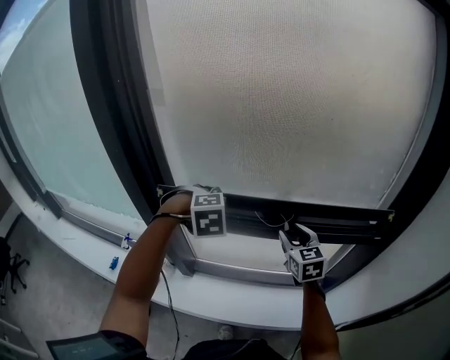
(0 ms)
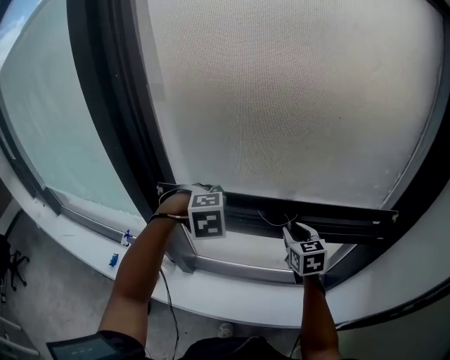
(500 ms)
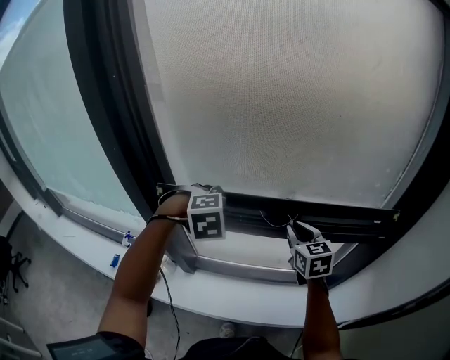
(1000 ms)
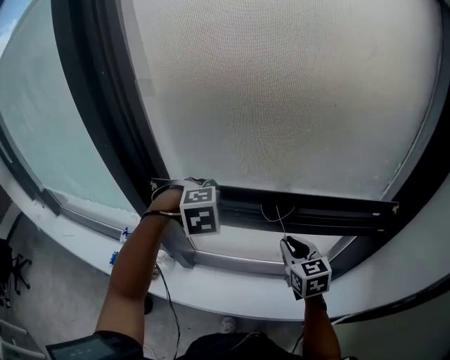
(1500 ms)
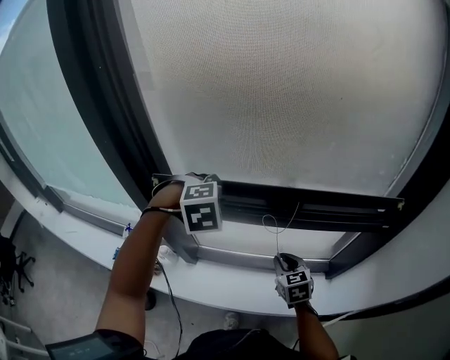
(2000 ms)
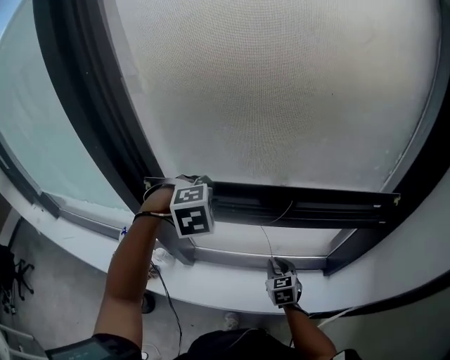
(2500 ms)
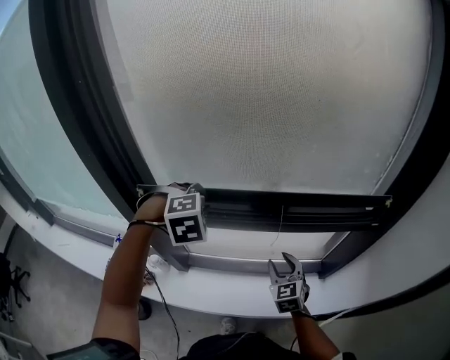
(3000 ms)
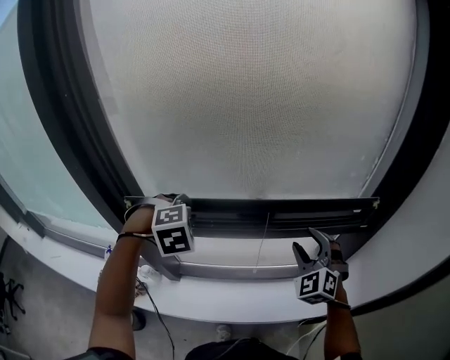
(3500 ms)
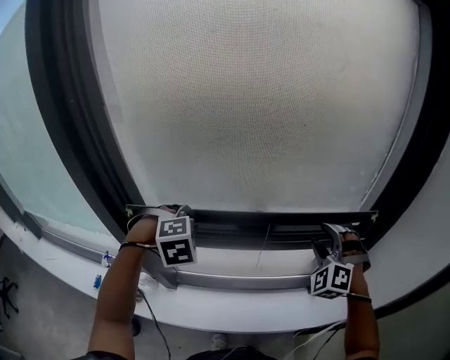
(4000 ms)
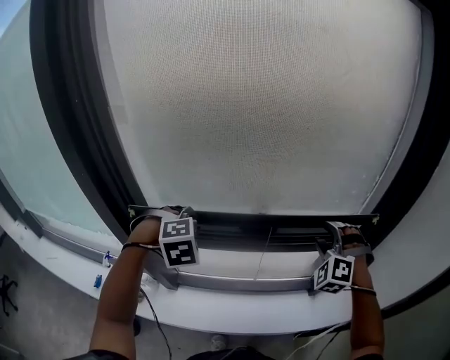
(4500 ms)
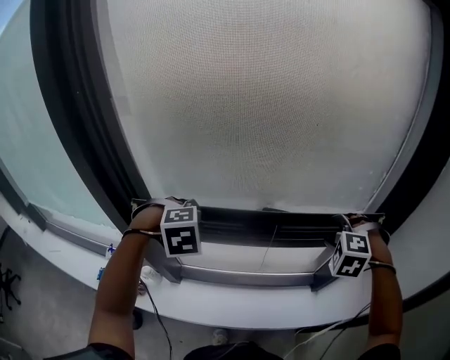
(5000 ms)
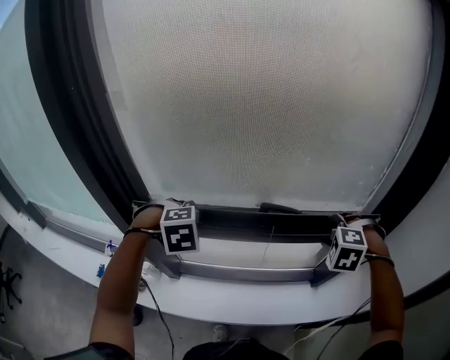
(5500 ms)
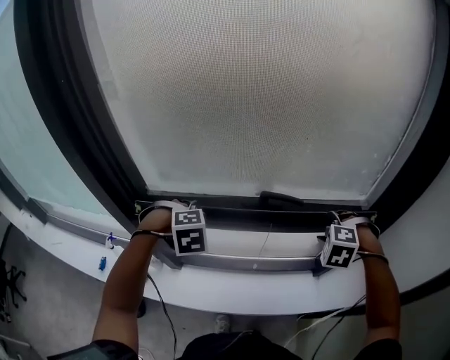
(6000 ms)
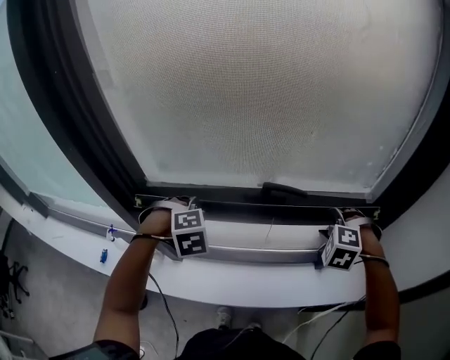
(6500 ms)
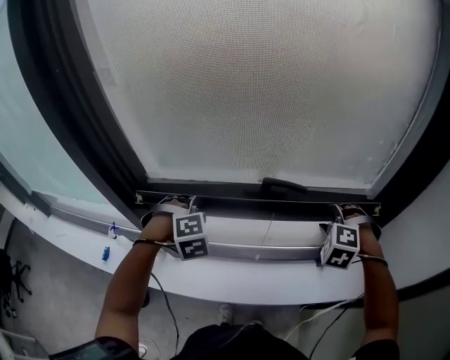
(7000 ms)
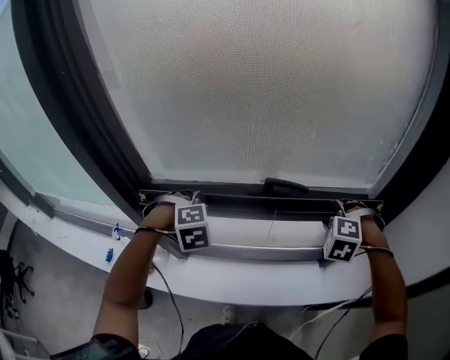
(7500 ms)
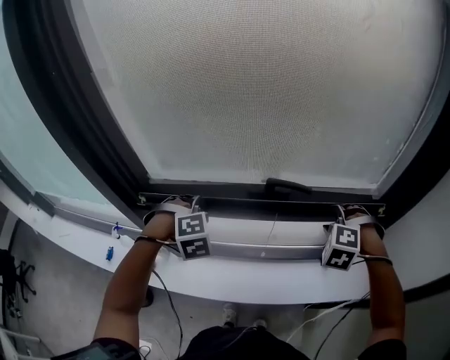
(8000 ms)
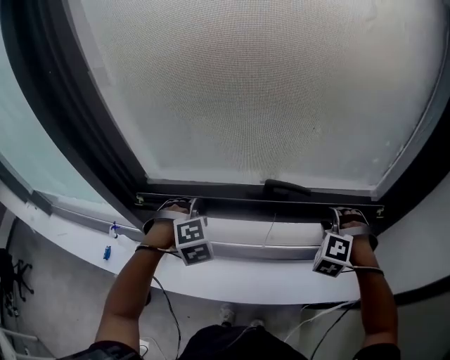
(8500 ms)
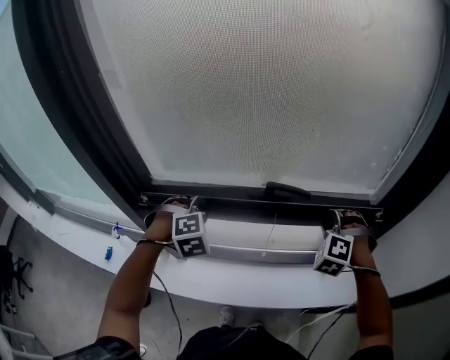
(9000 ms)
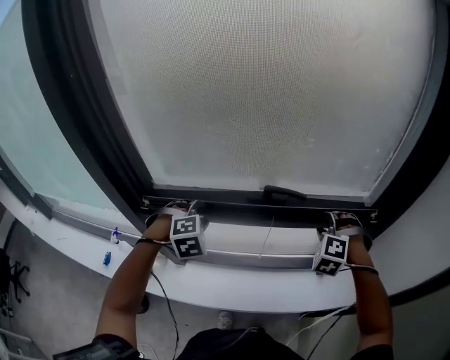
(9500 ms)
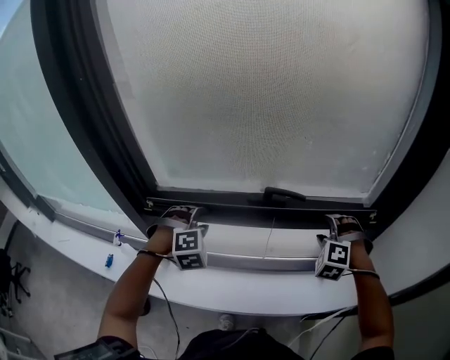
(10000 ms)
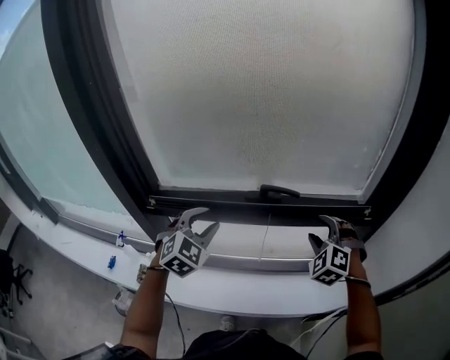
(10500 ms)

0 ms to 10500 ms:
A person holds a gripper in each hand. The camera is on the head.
0 ms to 2000 ms: The right gripper travels downward and backward by about 15 cm, and closes its fingers.
2000 ms to 4000 ms: The right gripper goes roughly 25 cm upward and to the right, rolls counterclockwise, seen from behind, by some 60 degrees, and opens.
4000 ms to 6500 ms: Both grippers move downward, approximately 10 cm. The right gripper angles its fingers downward, by some 30 degrees.
6500 ms to 8500 ms: The grippers stay close to where they were, moving slightly.
8500 ms to 10500 ms: The right gripper travels backward by approximately 5 cm, rotates some 20 degrees, and opens. Meanwhile the left gripper shifts roughly 10 cm upward and backward, swivels about 40 degrees, and opens.

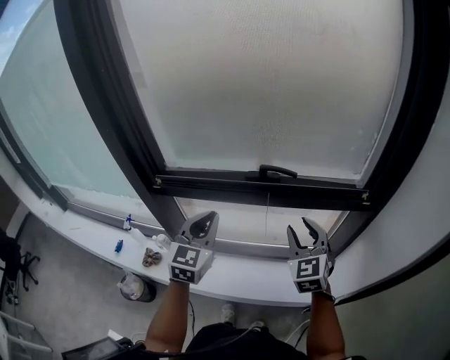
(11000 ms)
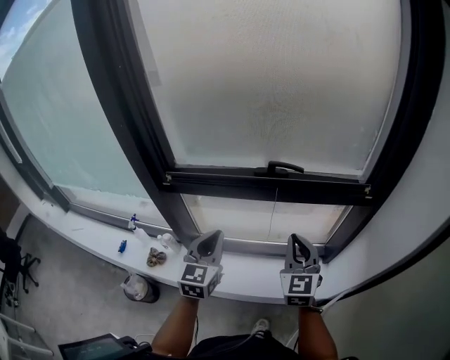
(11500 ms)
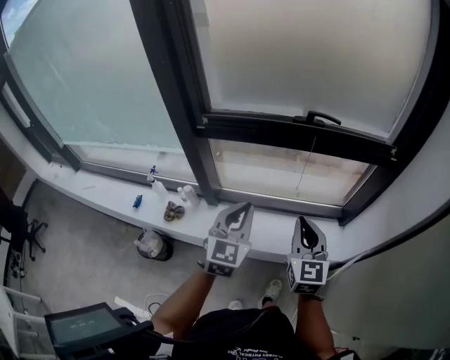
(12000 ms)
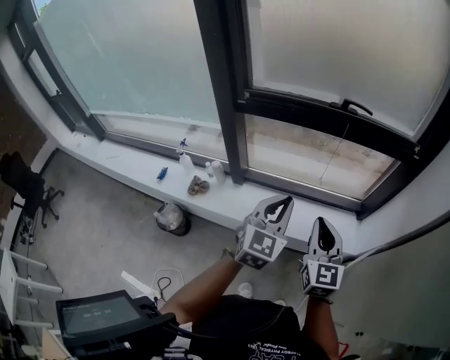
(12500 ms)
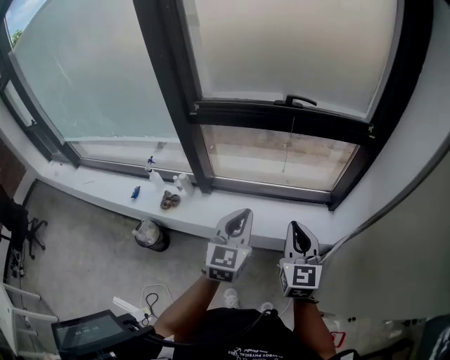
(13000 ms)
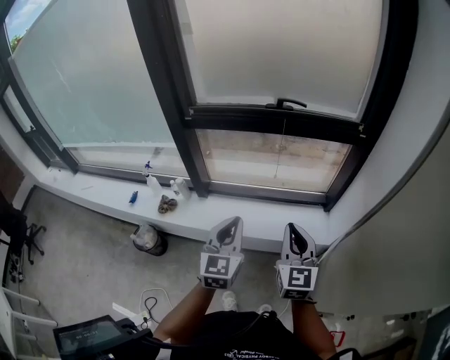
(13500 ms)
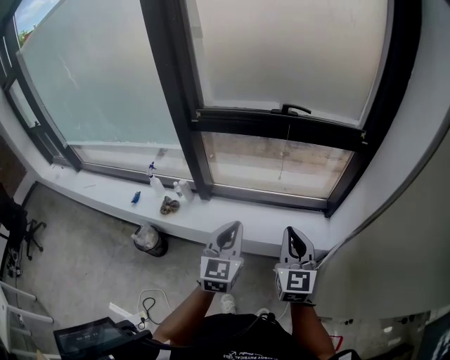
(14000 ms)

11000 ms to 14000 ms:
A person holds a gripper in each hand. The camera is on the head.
11000 ms to 12500 ms: The left gripper travels backward by some 20 cm; the right gripper shifts about 30 cm backward and to the left, turns by about 20 degrees, and closes.
12500 ms to 14000 ms: The left gripper heads backward, covering roughly 10 cm, while the right gripper moves backward and to the right, roughly 10 cm.

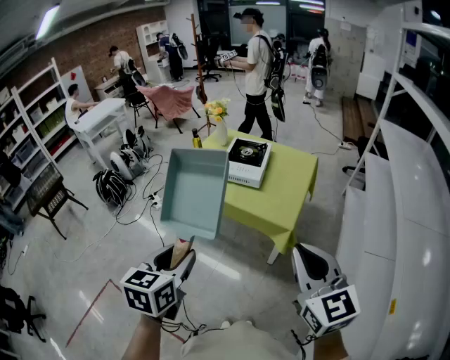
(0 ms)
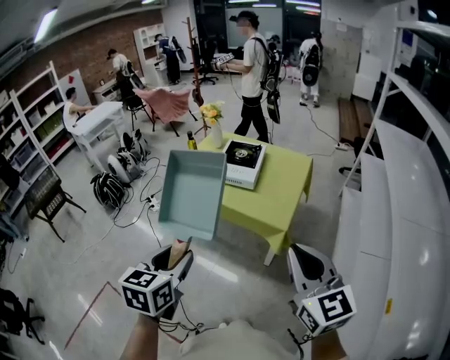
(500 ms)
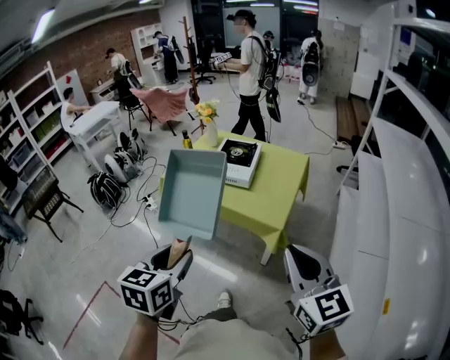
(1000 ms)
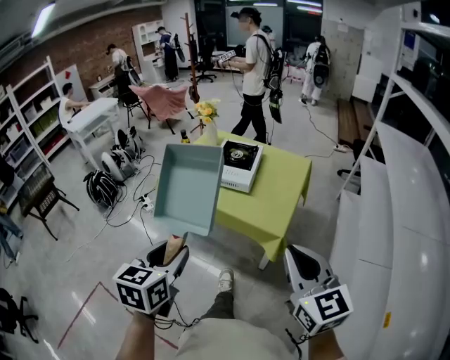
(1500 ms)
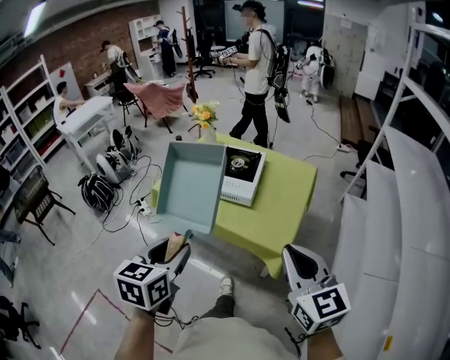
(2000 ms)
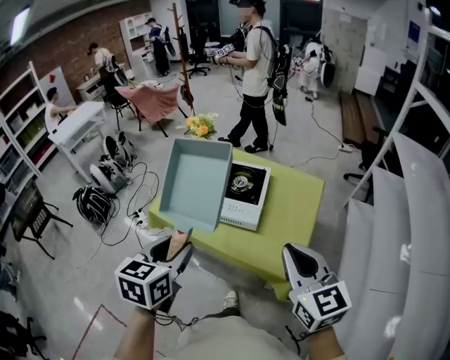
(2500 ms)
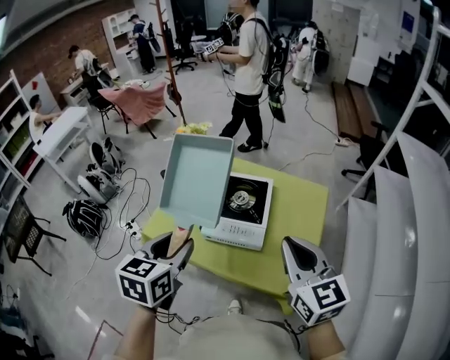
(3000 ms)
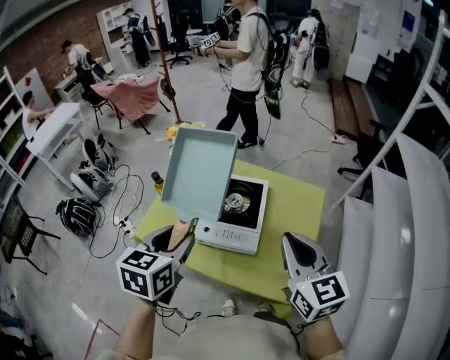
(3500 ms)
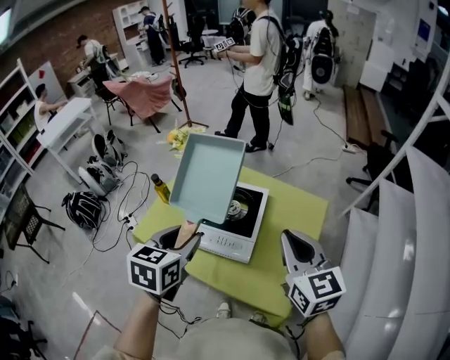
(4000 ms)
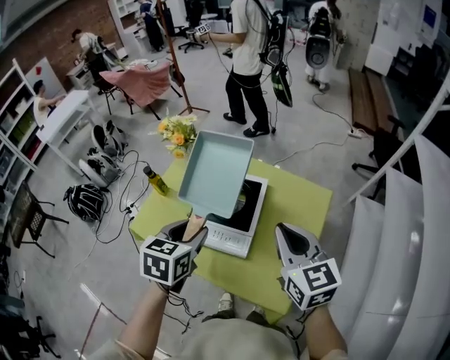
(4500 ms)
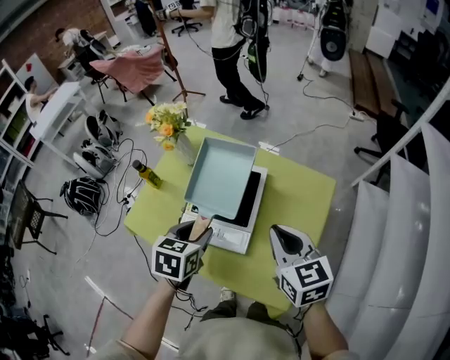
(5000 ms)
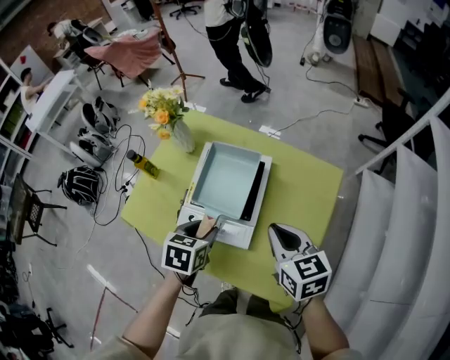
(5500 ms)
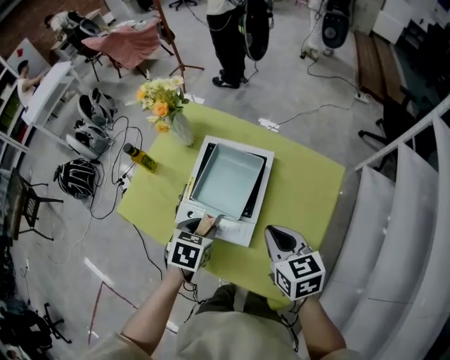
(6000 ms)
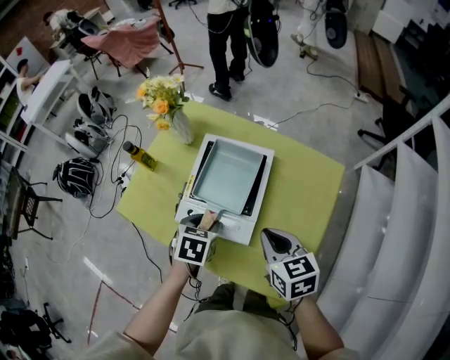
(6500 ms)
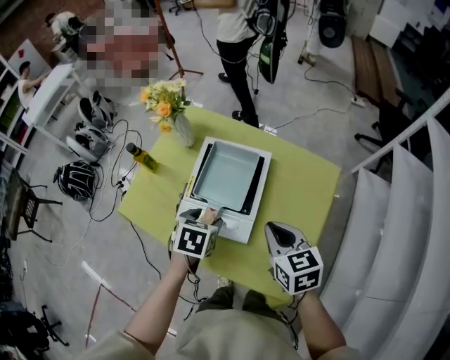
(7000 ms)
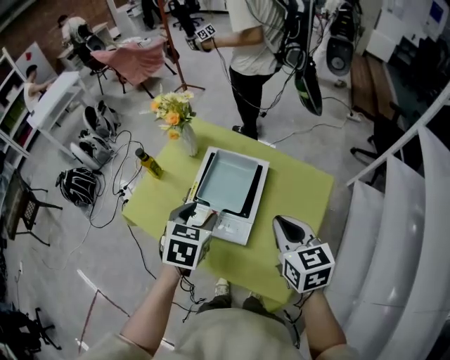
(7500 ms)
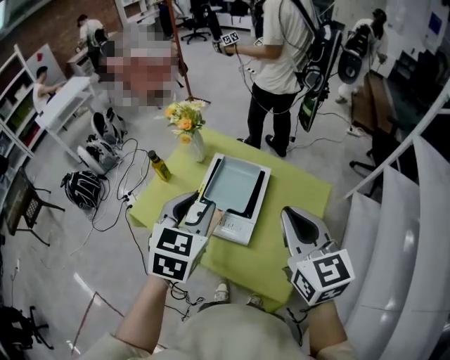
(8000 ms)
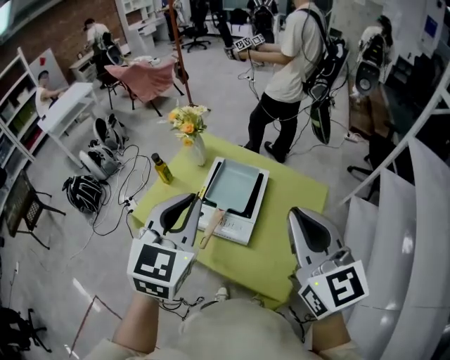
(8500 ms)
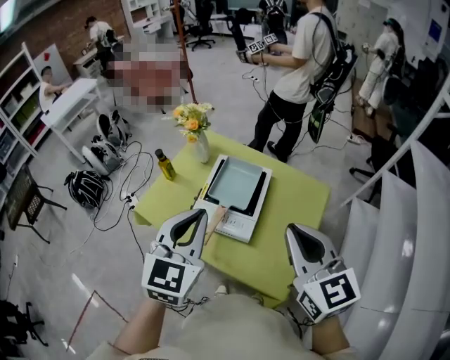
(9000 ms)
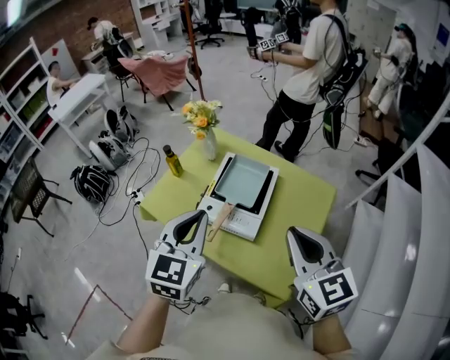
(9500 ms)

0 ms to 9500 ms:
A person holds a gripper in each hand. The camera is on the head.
0 ms to 2000 ms: Both grippers travel together forward, about 15 cm.
2000 ms to 4000 ms: The two grippers go some 35 cm forward.
4000 ms to 5500 ms: The grippers both shift downward by approximately 20 cm. The right gripper rotates approximately 20 degrees. Meanwhile the left gripper rotates roughly 20 degrees.
5500 ms to 7500 ms: The left gripper travels upward by about 10 cm.
7500 ms to 9500 ms: Both grippers move upward and backward, about 20 cm. The left gripper swivels about 30 degrees, and closes.

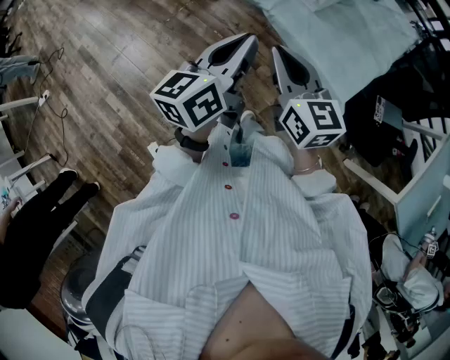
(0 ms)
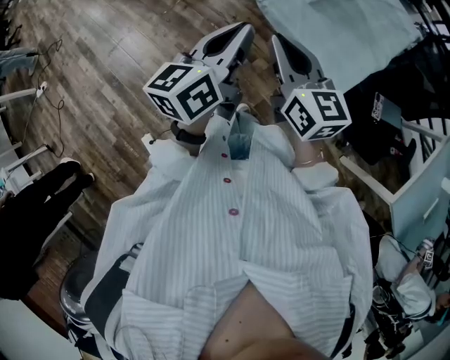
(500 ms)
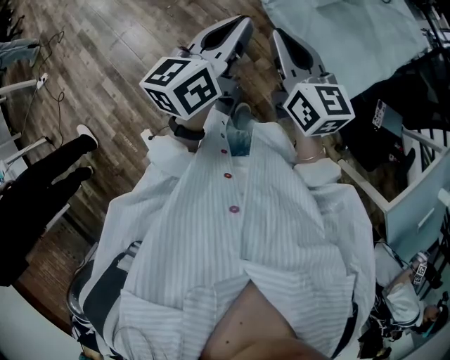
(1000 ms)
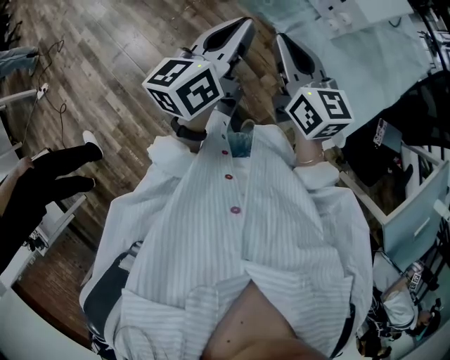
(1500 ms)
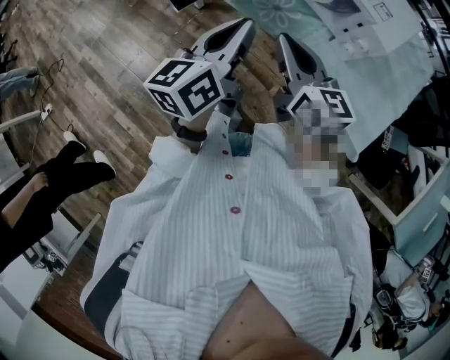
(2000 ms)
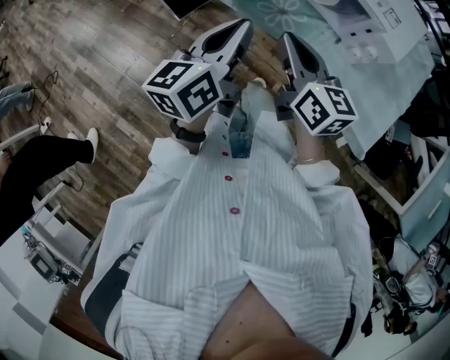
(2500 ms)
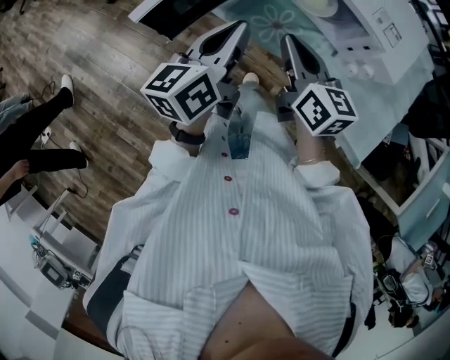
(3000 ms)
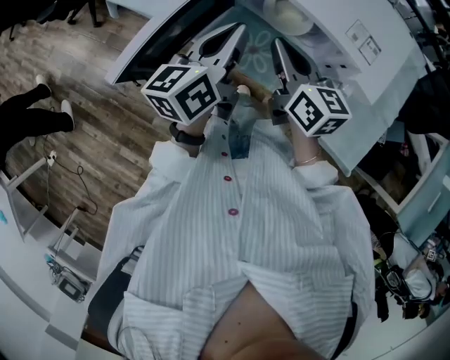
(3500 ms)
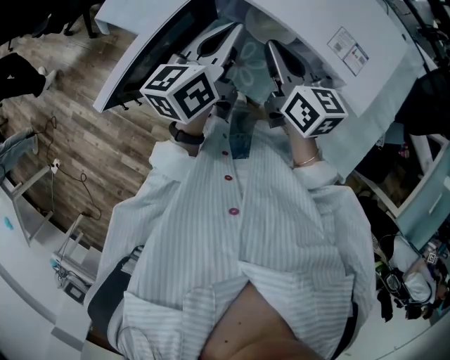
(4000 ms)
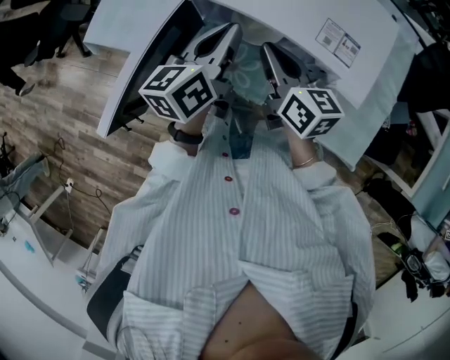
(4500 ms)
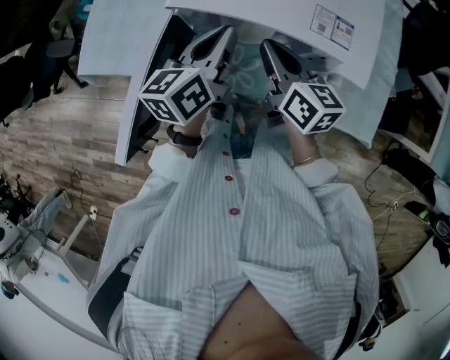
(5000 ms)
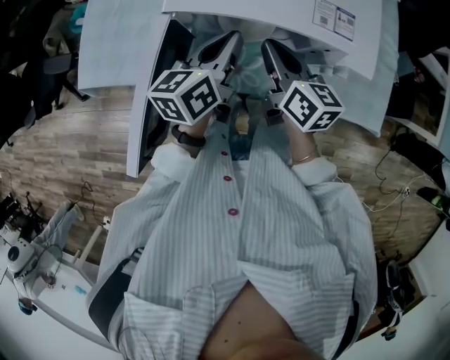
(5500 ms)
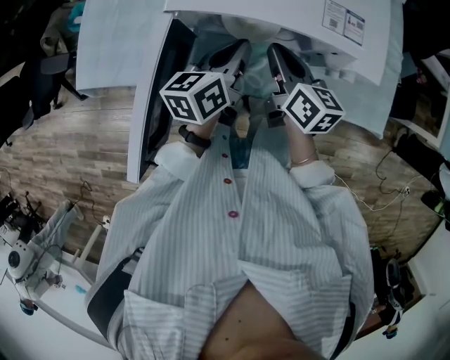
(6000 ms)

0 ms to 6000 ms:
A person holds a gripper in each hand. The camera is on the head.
0 ms to 2000 ms: The two grippers go about 25 cm forward and to the left.
2000 ms to 4000 ms: Both grippers move forward, about 25 cm.
4000 ms to 6000 ms: Both grippers move downward, roughly 10 cm. The left gripper swivels about 30 degrees. The right gripper changes its angle by roughly 30 degrees.
